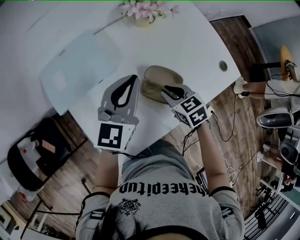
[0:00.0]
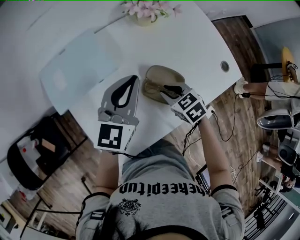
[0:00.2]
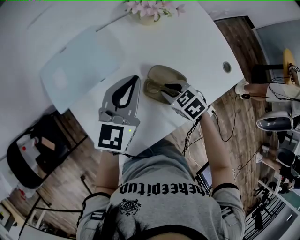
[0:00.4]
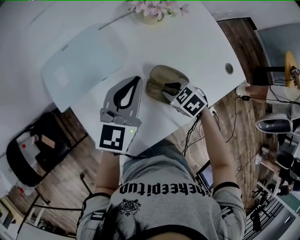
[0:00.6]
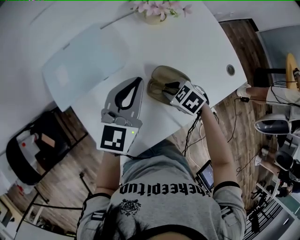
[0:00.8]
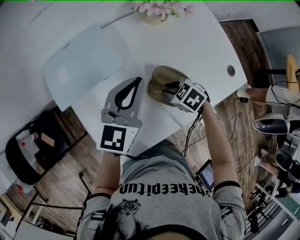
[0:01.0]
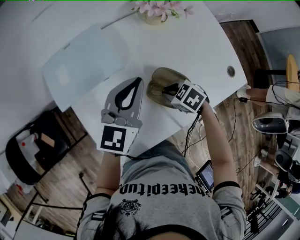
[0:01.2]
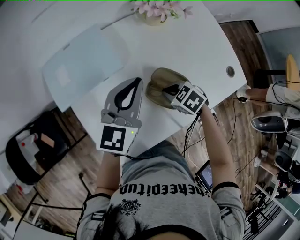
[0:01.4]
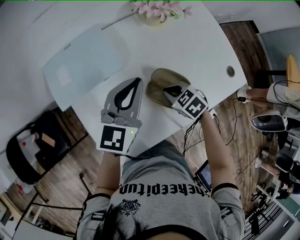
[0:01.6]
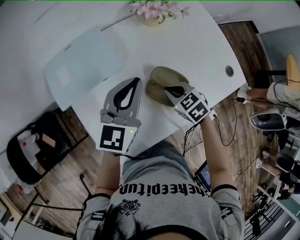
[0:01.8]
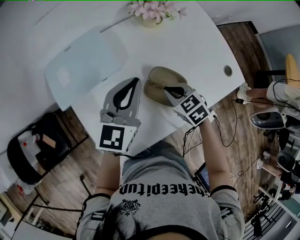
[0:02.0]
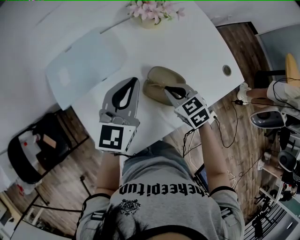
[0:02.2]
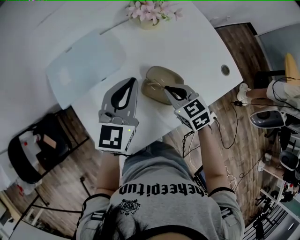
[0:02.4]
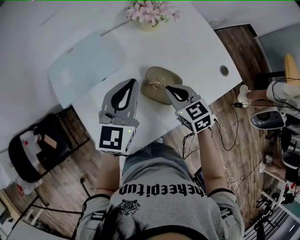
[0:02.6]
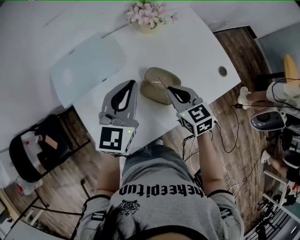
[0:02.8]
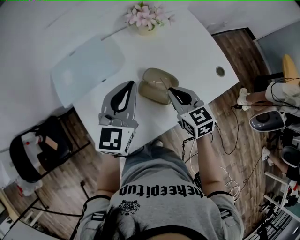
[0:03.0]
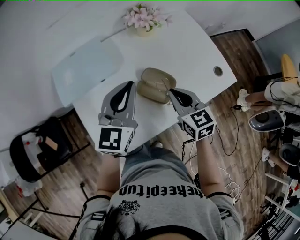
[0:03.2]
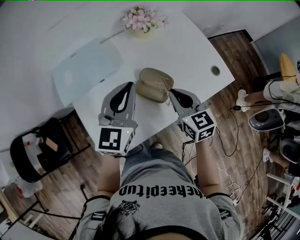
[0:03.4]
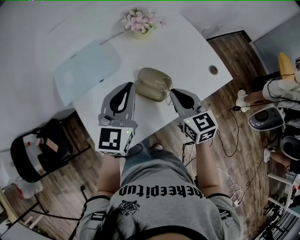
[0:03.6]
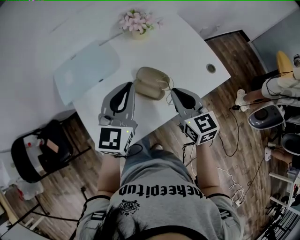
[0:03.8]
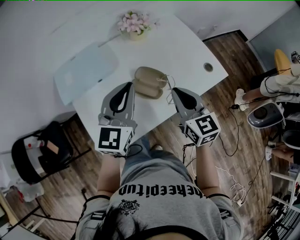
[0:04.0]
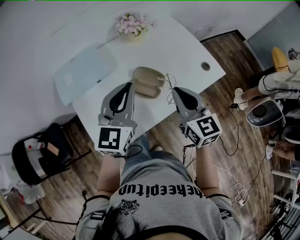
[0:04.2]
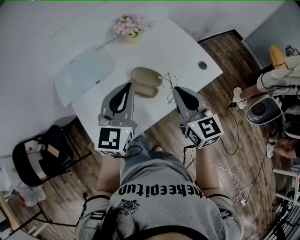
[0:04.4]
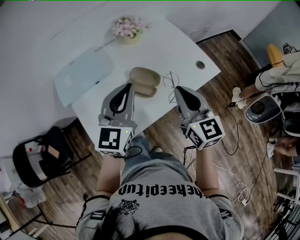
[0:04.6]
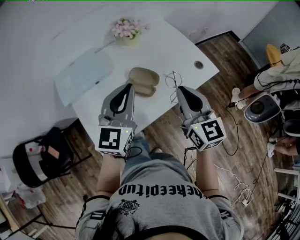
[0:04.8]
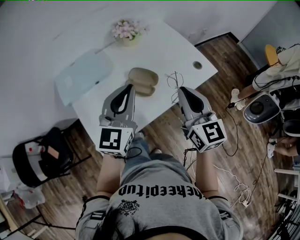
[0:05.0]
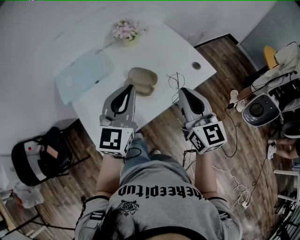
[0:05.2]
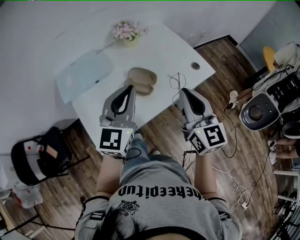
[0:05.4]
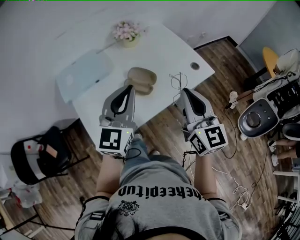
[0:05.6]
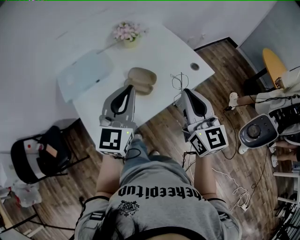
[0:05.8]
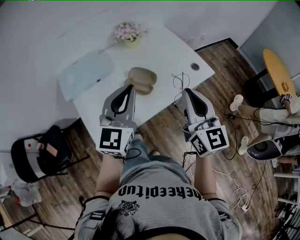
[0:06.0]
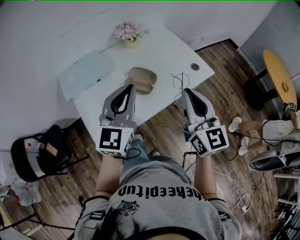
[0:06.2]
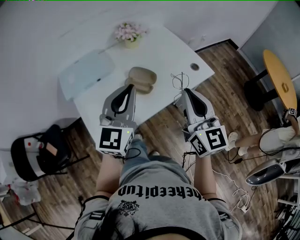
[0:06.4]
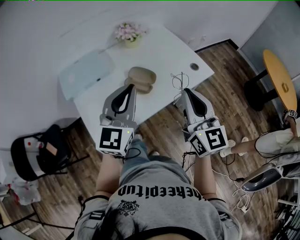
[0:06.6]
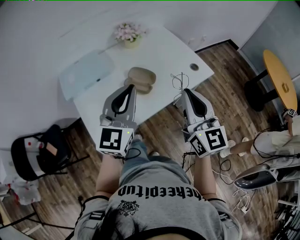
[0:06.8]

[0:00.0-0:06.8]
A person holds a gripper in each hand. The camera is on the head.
0:00.0 to 0:01.4: The right gripper goes roughly 5 cm downward, and changes its angle by about 30 degrees.
0:01.4 to 0:02.8: The right gripper moves upward, approximately 10 cm, and angles its fingers upward, by roughly 30 degrees, while the left gripper shifts by roughly 5 cm.
0:02.8 to 0:04.0: The left gripper travels backward by approximately 5 cm. Meanwhile the right gripper shifts some 10 cm upward and backward, and rotates about 20 degrees.
0:04.0 to 0:05.4: The left gripper goes roughly 10 cm backward; the right gripper is displaced backward, upward and to the right by about 15 cm.
0:05.4 to 0:06.8: The grippers make only small movements.

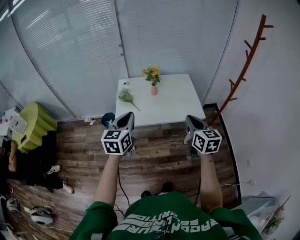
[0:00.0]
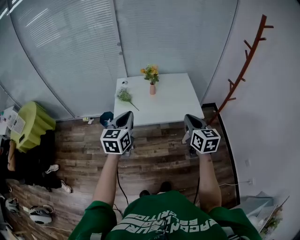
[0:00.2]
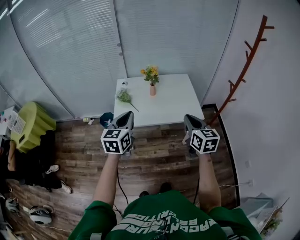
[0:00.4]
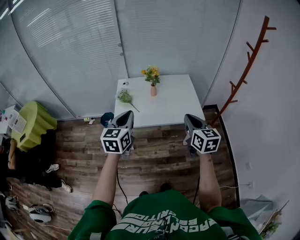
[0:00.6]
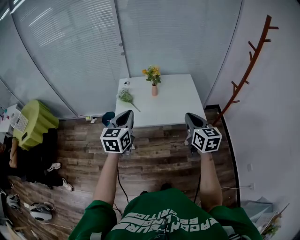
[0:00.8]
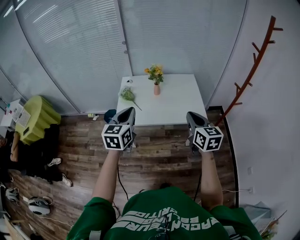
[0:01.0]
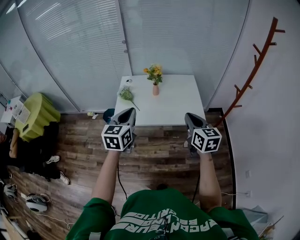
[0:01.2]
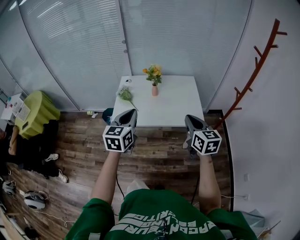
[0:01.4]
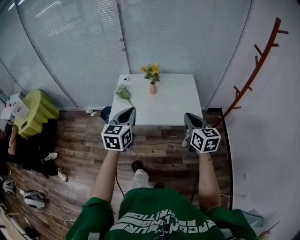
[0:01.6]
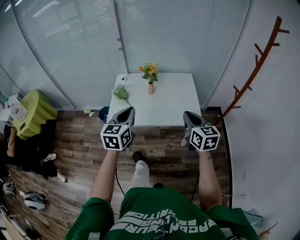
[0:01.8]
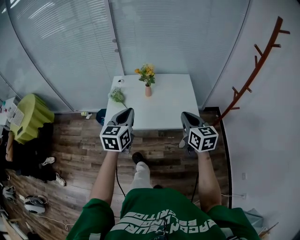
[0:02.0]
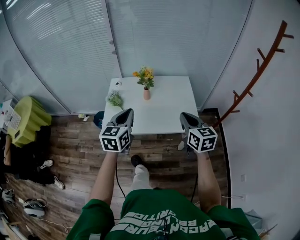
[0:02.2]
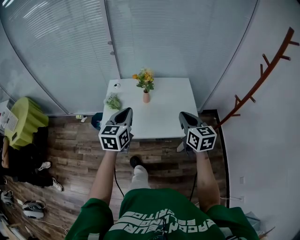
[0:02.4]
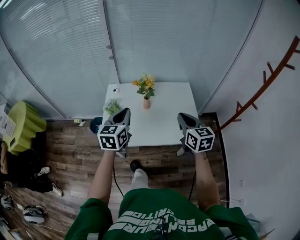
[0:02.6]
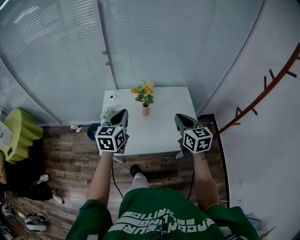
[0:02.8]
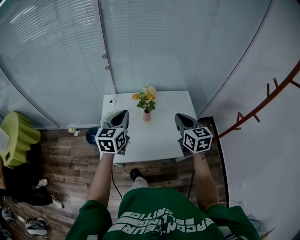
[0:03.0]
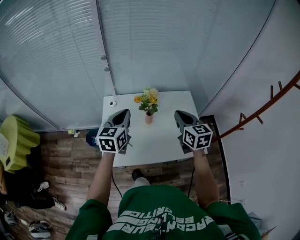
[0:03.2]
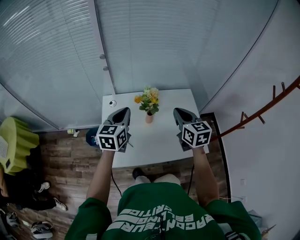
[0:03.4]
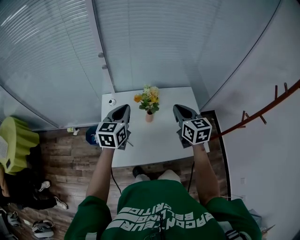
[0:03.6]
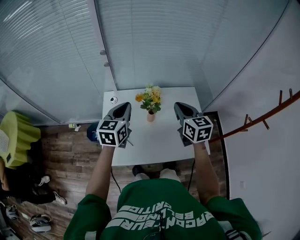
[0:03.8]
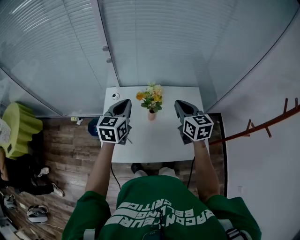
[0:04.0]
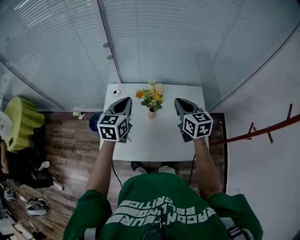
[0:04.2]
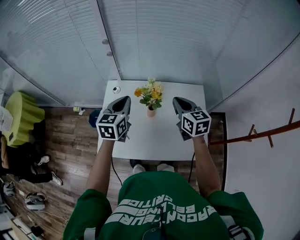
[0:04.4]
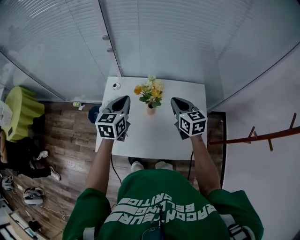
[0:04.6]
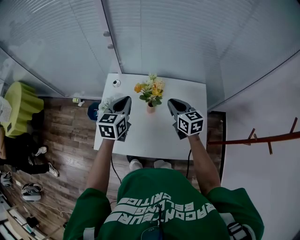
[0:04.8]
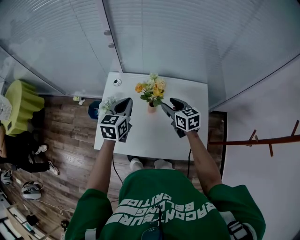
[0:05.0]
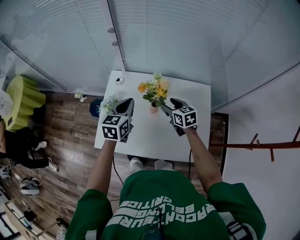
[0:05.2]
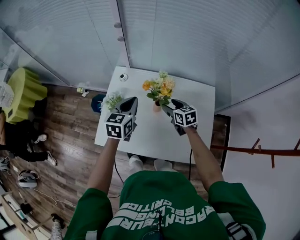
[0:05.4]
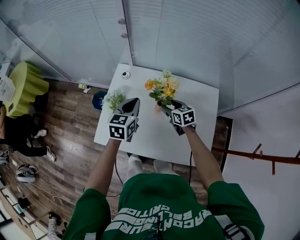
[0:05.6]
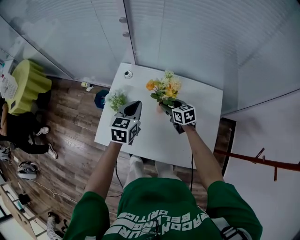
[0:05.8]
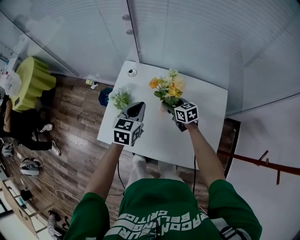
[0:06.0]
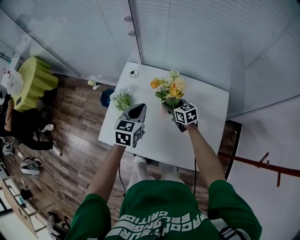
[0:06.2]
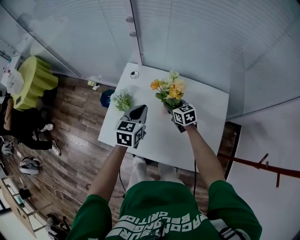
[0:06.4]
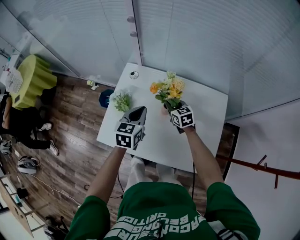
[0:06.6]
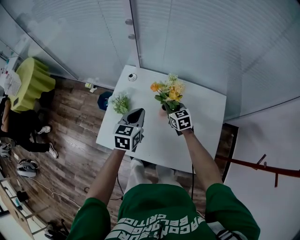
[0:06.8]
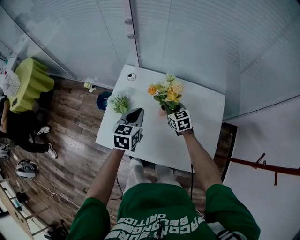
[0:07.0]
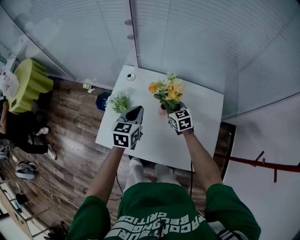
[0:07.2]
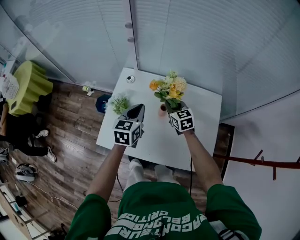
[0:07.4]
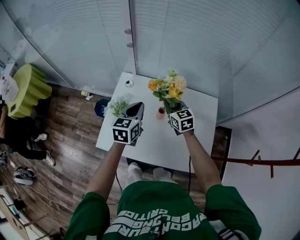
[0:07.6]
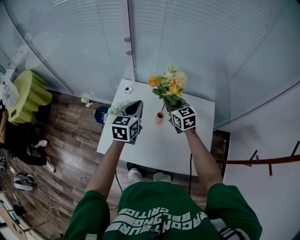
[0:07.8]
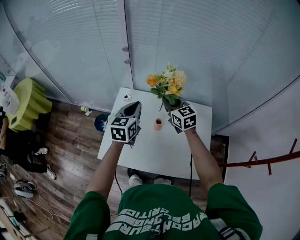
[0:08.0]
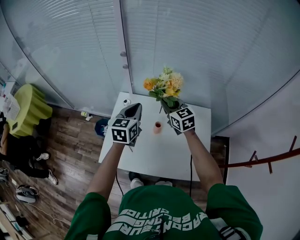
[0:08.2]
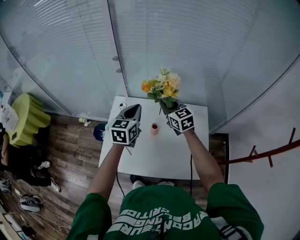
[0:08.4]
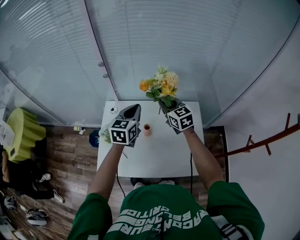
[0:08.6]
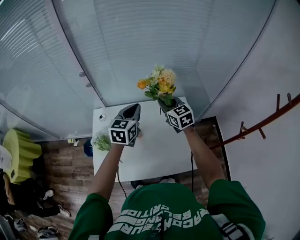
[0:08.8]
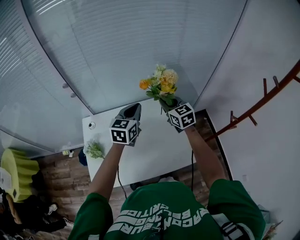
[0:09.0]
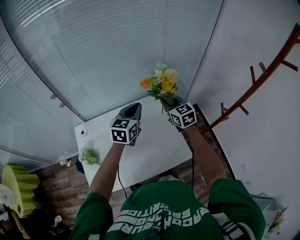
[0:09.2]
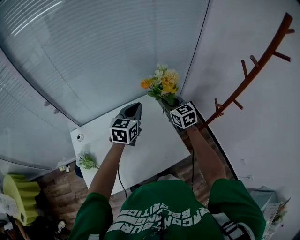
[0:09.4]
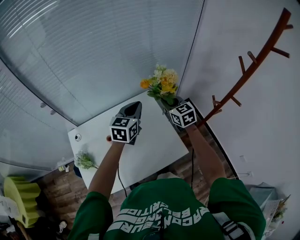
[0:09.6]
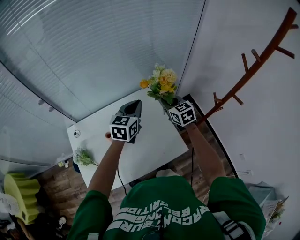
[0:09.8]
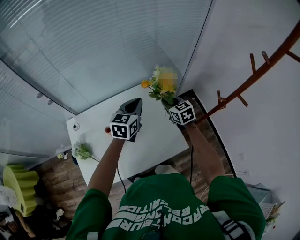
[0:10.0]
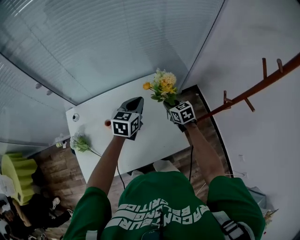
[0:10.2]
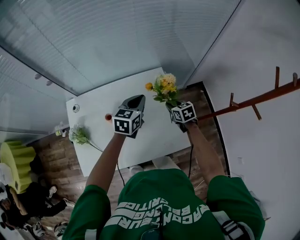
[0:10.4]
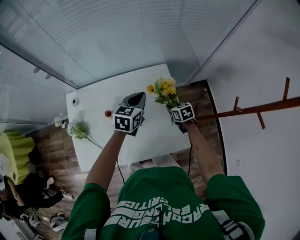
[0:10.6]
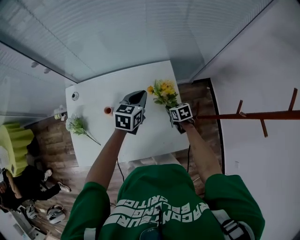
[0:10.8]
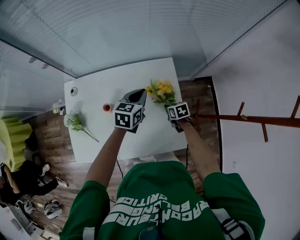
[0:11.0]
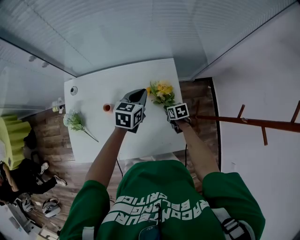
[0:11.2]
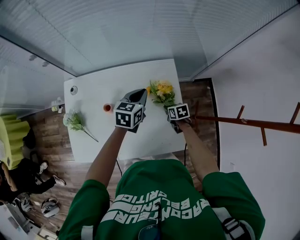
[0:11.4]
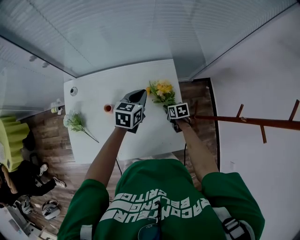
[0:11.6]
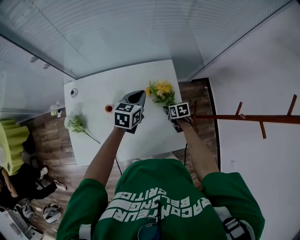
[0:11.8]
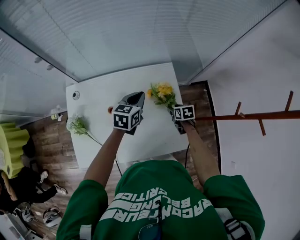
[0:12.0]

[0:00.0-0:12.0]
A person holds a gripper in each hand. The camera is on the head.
0:00.0 to 0:01.6: The right gripper shifts some 10 cm forward and to the right. Meanwhile the left gripper travels to the right and forward by approximately 10 cm.
0:01.6 to 0:03.0: Both grippers move forward, about 30 cm.
0:03.0 to 0:04.4: The grippers both shift forward by roughly 15 cm.
0:04.4 to 0:06.0: The right gripper heads downward, covering approximately 25 cm, rotates some 30 degrees, and opens, while the left gripper moves downward, roughly 10 cm.
0:06.0 to 0:07.6: The right gripper heads upward, covering some 10 cm, rotates some 20 degrees, and closes its fingers.
0:07.6 to 0:09.0: The left gripper changes place by about 25 cm, and swivels approximately 30 degrees, while the right gripper moves some 25 cm, and swivels approximately 20 degrees.
0:09.0 to 0:10.4: The right gripper is displaced downward and to the right by some 25 cm, and changes its angle by roughly 30 degrees; the left gripper moves downward and to the right, roughly 15 cm.
0:10.4 to 0:12.0: The right gripper shifts some 10 cm downward, and opens up. Meanwhile the left gripper shifts by approximately 5 cm.

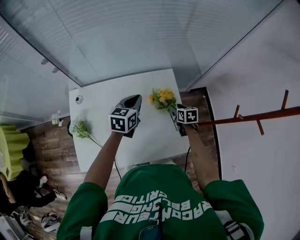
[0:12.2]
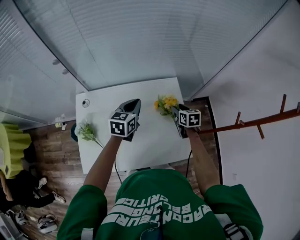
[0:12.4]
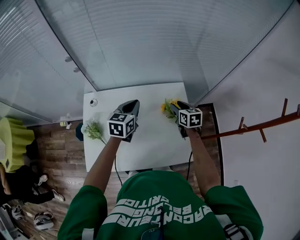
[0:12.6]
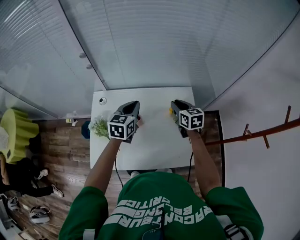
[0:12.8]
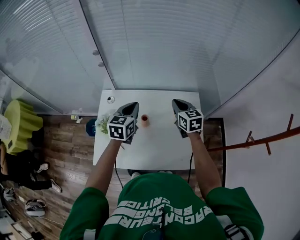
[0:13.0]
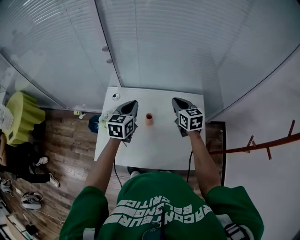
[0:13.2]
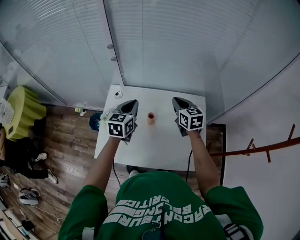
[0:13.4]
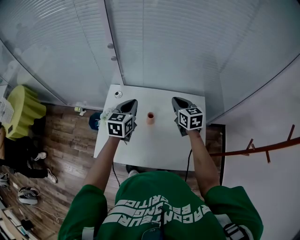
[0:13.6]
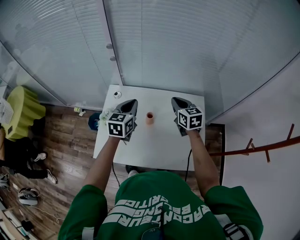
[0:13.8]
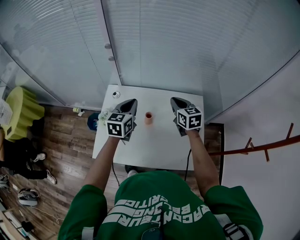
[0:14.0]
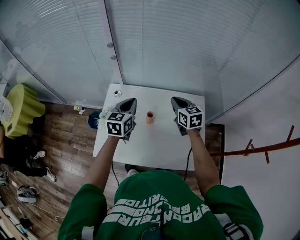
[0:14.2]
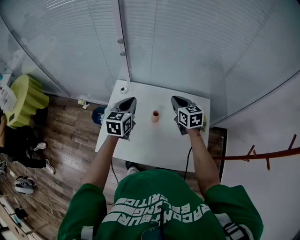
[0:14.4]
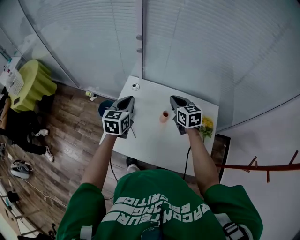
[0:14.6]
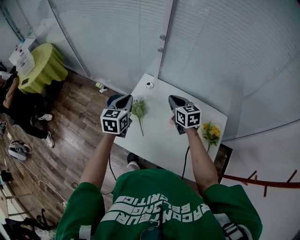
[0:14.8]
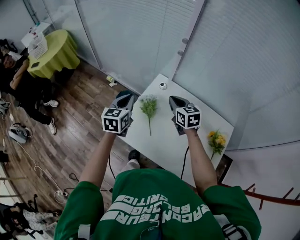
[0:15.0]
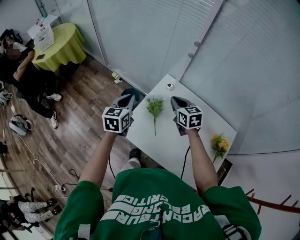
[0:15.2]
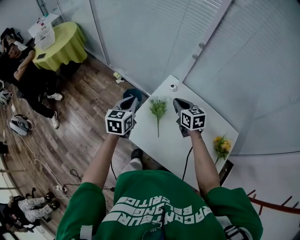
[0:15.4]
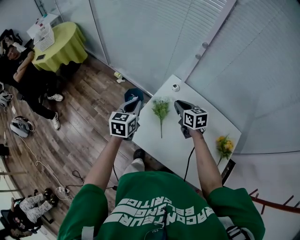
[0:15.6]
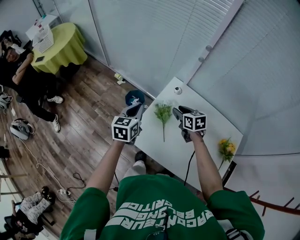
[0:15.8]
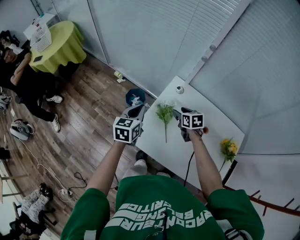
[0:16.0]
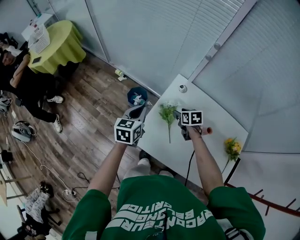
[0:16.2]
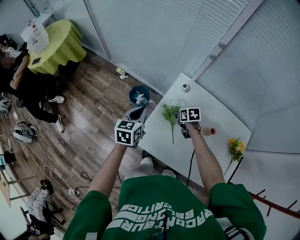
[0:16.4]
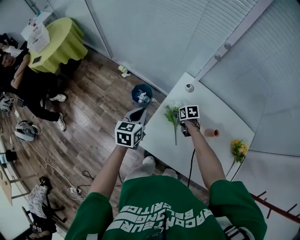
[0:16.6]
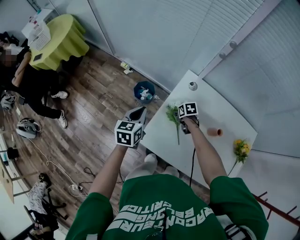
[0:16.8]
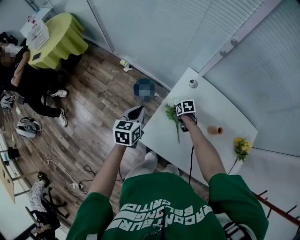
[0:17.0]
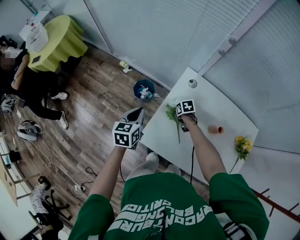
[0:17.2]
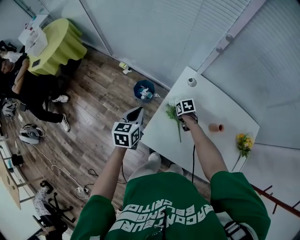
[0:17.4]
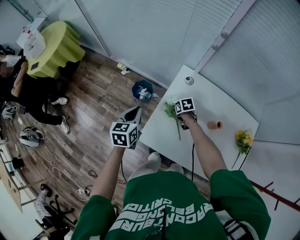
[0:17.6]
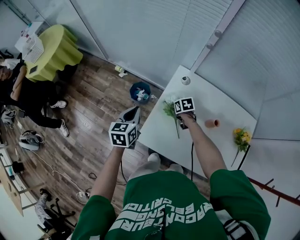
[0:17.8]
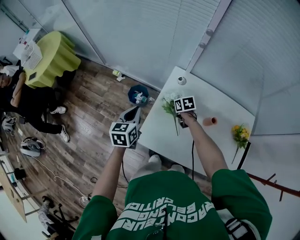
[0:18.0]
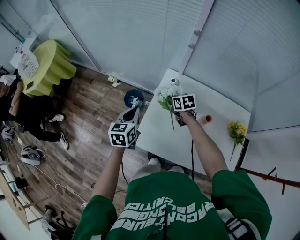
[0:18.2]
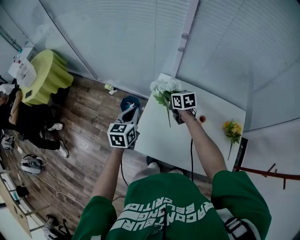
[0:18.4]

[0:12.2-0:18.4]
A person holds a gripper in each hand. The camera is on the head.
0:12.2 to 0:13.8: The left gripper heads to the left, covering some 20 cm, and rotates some 20 degrees, while the right gripper heads to the left and upward, covering about 35 cm, swivels about 40 degrees, and closes its fingers.
0:13.8 to 0:15.4: The right gripper changes place by about 30 cm, and changes its angle by about 30 degrees. Meanwhile the left gripper changes place by roughly 30 cm, and swivels roughly 30 degrees.
0:15.4 to 0:16.8: The left gripper shifts approximately 10 cm downward and forward. Meanwhile the right gripper moves downward, some 30 cm, points its fingers some 40 degrees further downward, and opens up.
0:16.8 to 0:18.4: The right gripper moves upward, about 20 cm, turns by about 30 degrees, and closes its fingers, while the left gripper travels upward and to the right by approximately 10 cm.
